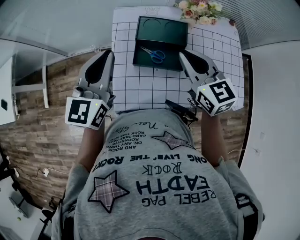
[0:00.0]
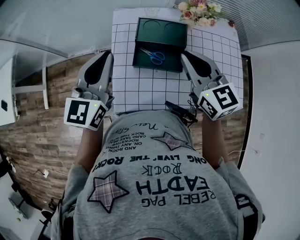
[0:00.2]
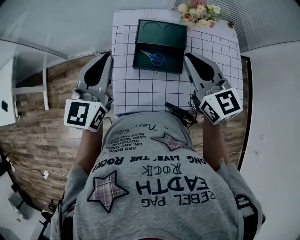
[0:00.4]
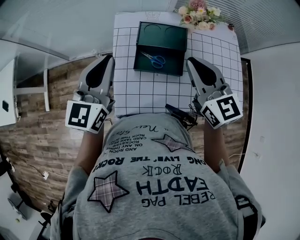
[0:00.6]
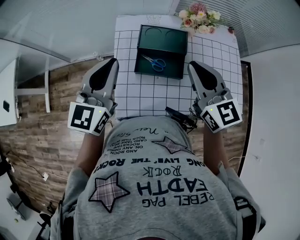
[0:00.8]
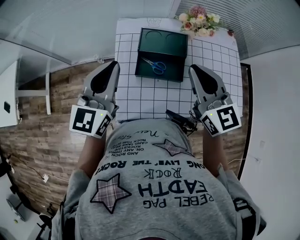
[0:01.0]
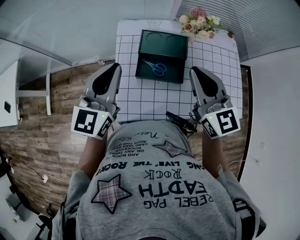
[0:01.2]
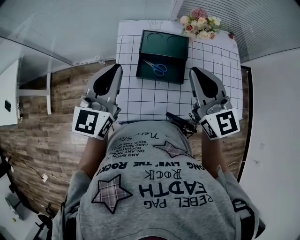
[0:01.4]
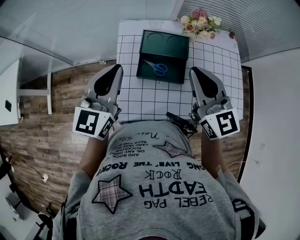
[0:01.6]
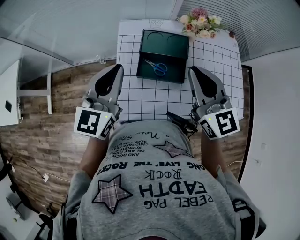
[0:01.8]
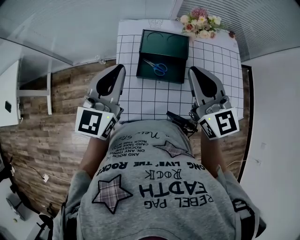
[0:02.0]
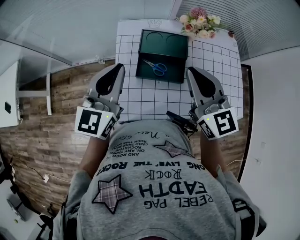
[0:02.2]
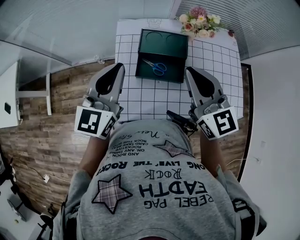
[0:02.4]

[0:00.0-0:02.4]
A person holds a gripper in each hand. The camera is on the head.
0:00.0 to 0:01.2: The right gripper shifts approximately 5 cm upward.
0:01.2 to 0:02.4: The grippers stay close to where they were, moving slightly.

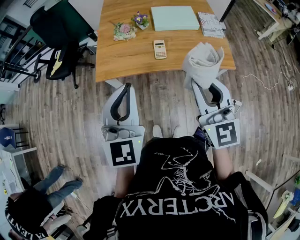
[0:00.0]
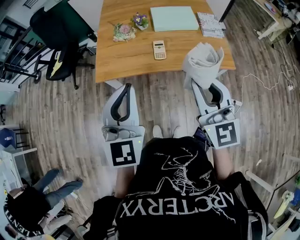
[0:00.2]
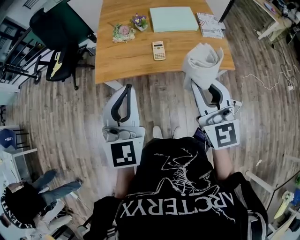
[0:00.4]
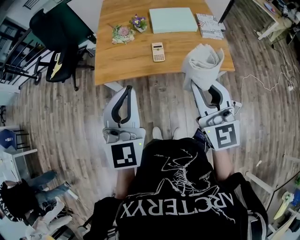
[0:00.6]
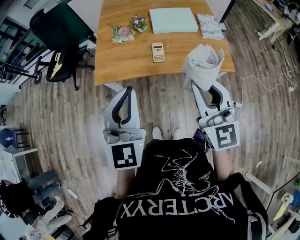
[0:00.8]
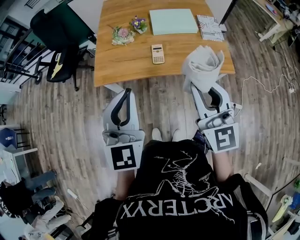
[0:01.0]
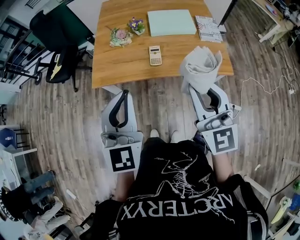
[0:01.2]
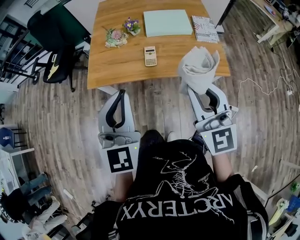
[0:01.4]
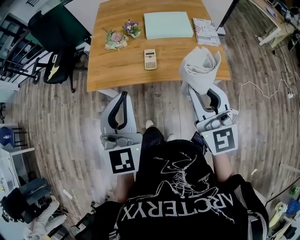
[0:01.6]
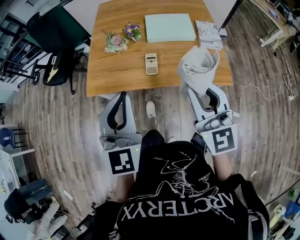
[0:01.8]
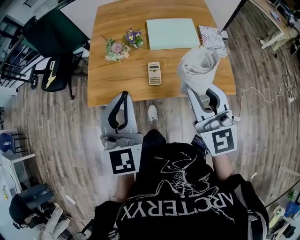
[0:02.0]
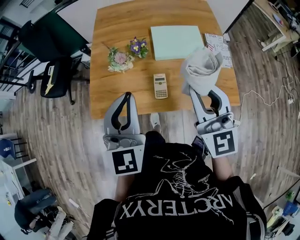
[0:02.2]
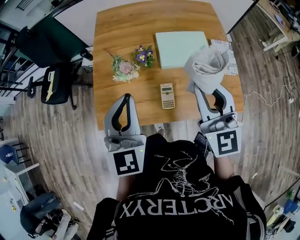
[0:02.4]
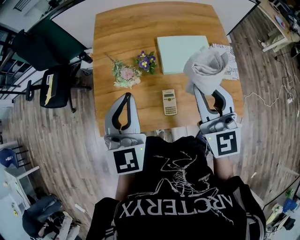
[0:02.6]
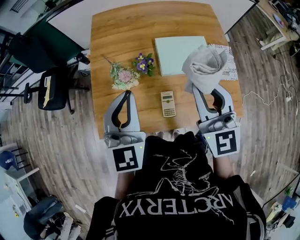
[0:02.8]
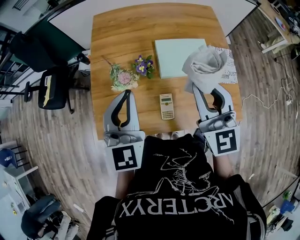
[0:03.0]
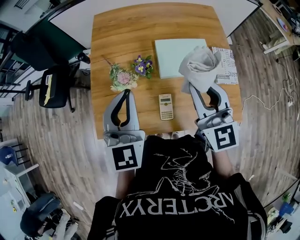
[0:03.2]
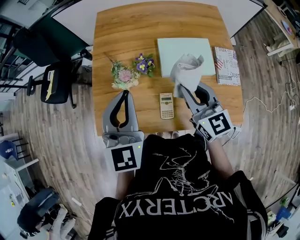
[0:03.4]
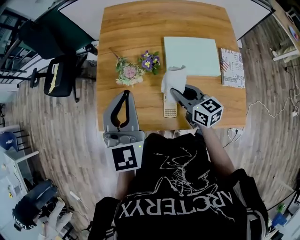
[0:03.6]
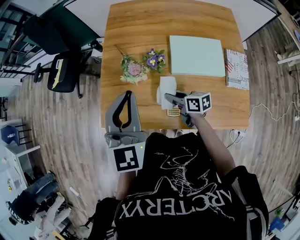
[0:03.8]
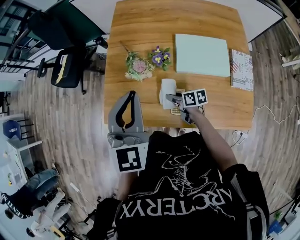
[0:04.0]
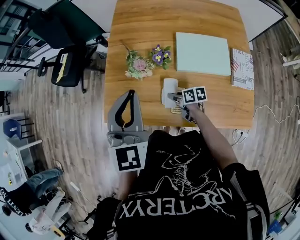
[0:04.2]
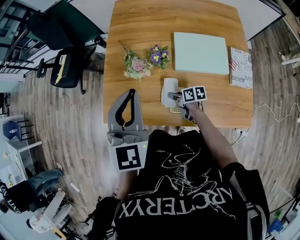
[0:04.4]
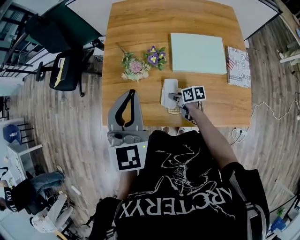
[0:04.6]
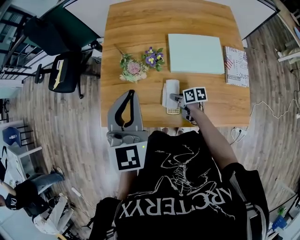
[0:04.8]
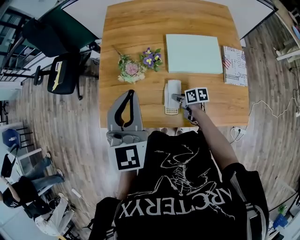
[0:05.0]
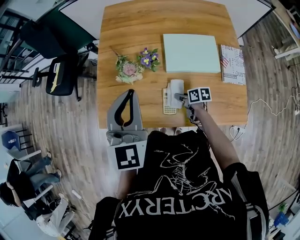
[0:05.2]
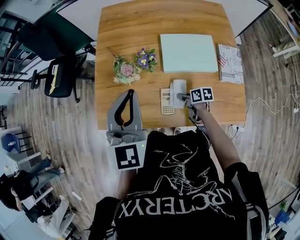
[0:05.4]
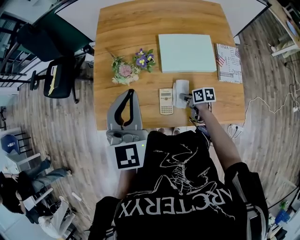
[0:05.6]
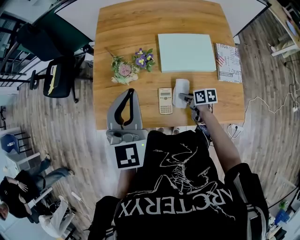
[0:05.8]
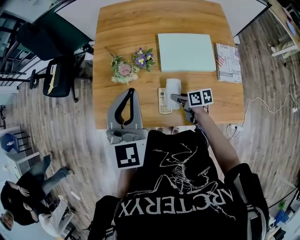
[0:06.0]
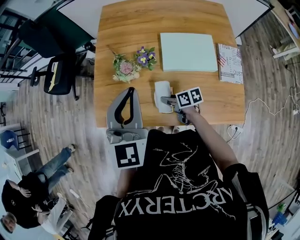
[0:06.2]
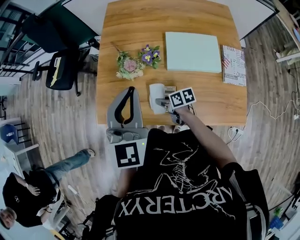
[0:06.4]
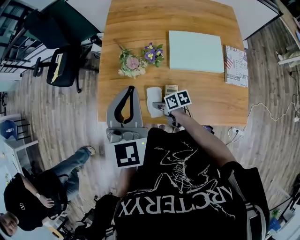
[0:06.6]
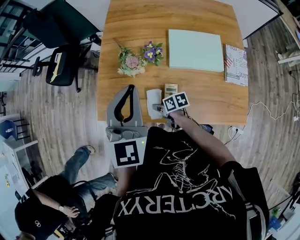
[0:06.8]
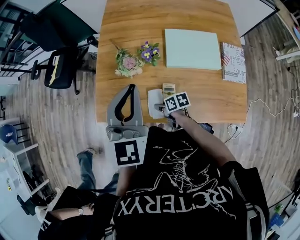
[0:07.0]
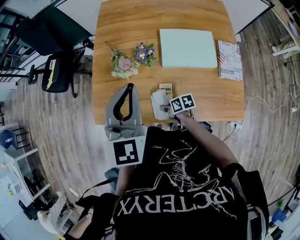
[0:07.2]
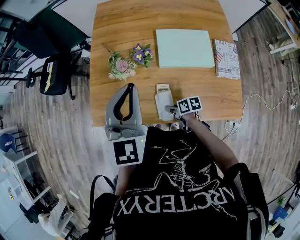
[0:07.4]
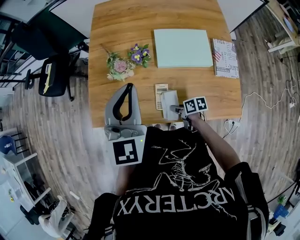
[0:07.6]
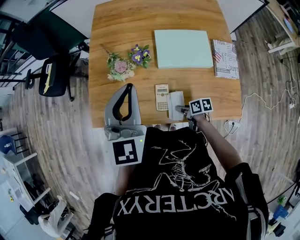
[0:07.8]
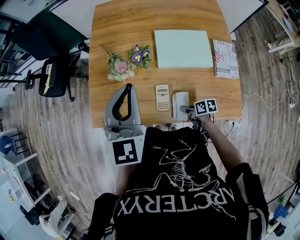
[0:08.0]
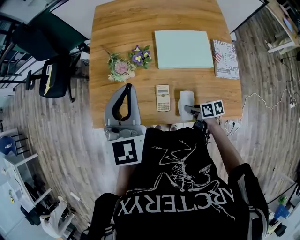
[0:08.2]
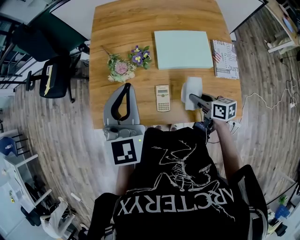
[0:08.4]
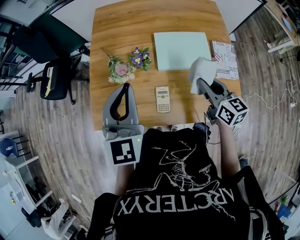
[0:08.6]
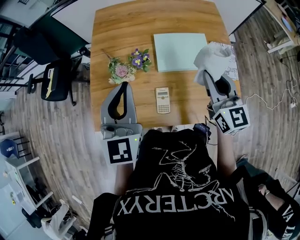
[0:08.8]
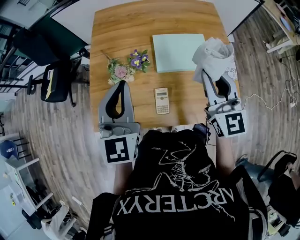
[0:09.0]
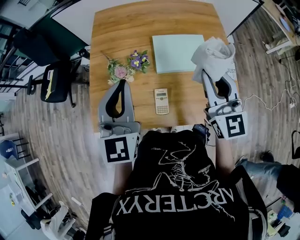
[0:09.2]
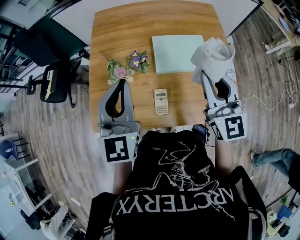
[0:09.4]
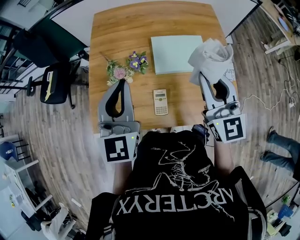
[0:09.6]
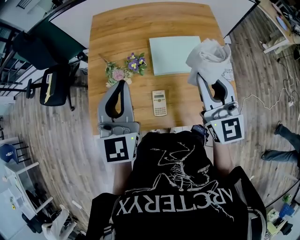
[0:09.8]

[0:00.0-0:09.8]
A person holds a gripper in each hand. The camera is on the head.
0:00.0 to 0:01.4: The grippers both shift to the right by approximately 5 cm.
0:01.4 to 0:02.8: The two grippers go about 35 cm forward.
0:02.8 to 0:04.2: The right gripper moves downward, roughly 40 cm, and angles its fingers downward, by about 30 degrees.
0:04.2 to 0:05.6: The right gripper goes about 15 cm to the right and backward.
0:05.6 to 0:07.0: The right gripper moves to the left, roughly 20 cm.
0:07.0 to 0:08.4: The right gripper goes roughly 25 cm to the right and upward, and changes its angle by roughly 30 degrees.
0:08.4 to 0:09.8: The right gripper moves upward, about 25 cm, and tilts its fingers roughly 30 degrees upward.

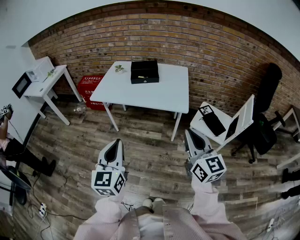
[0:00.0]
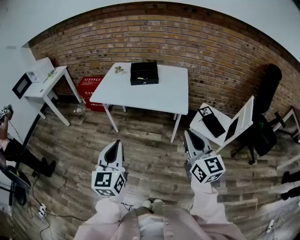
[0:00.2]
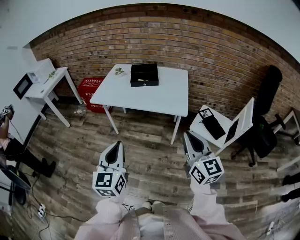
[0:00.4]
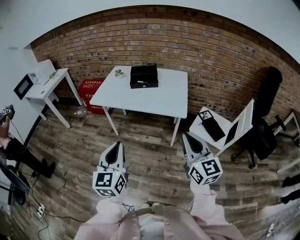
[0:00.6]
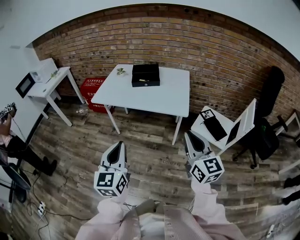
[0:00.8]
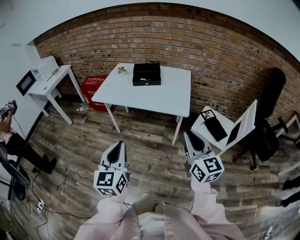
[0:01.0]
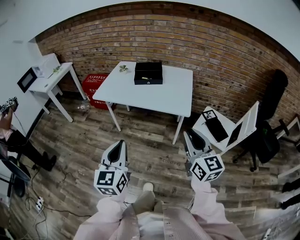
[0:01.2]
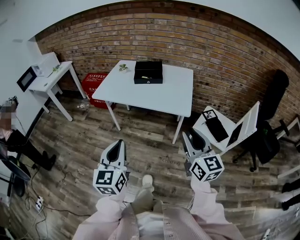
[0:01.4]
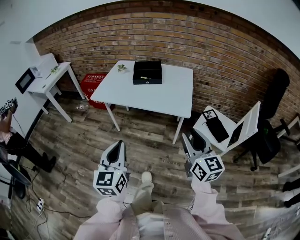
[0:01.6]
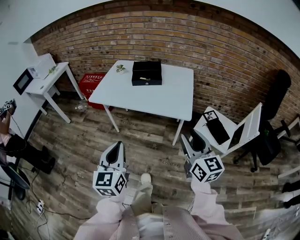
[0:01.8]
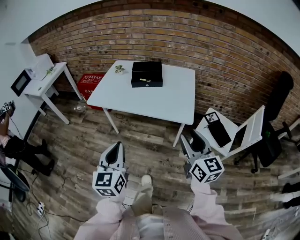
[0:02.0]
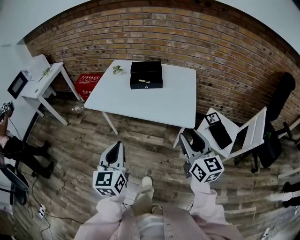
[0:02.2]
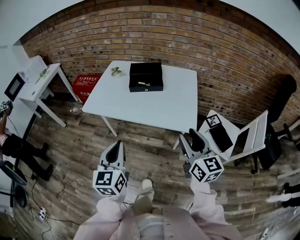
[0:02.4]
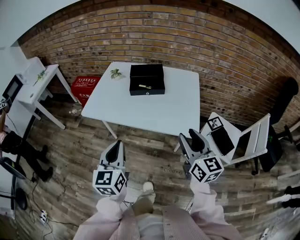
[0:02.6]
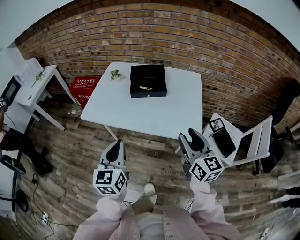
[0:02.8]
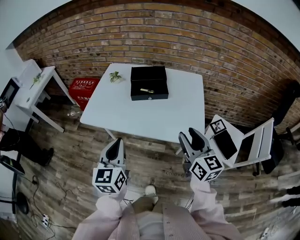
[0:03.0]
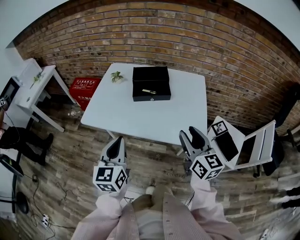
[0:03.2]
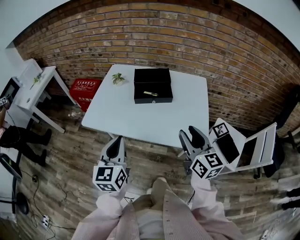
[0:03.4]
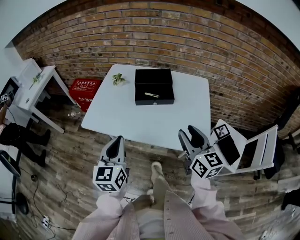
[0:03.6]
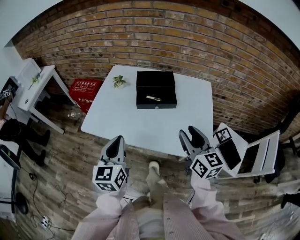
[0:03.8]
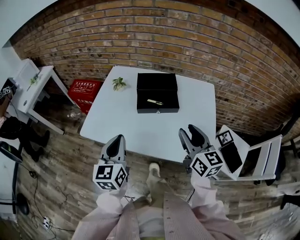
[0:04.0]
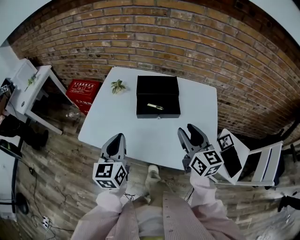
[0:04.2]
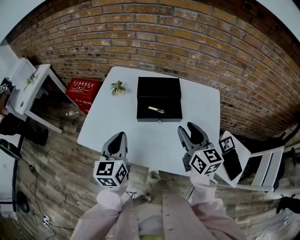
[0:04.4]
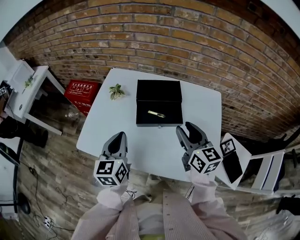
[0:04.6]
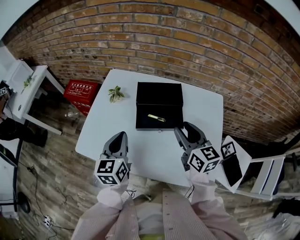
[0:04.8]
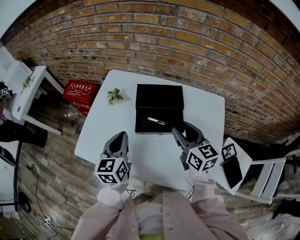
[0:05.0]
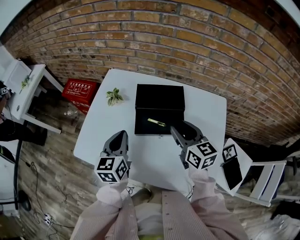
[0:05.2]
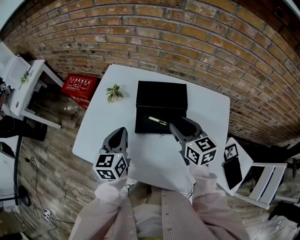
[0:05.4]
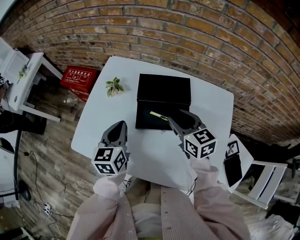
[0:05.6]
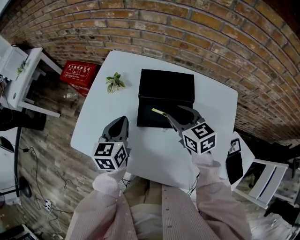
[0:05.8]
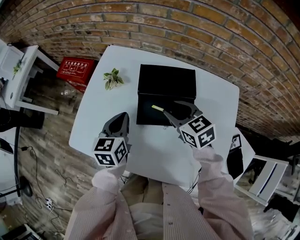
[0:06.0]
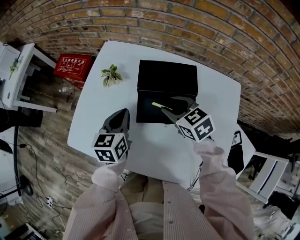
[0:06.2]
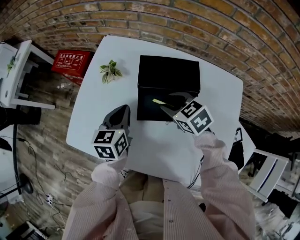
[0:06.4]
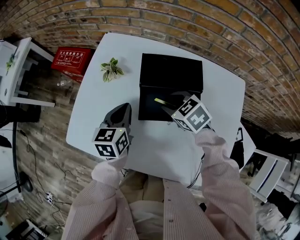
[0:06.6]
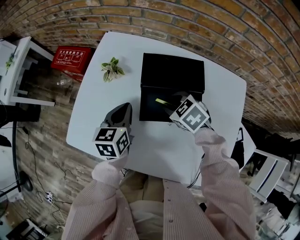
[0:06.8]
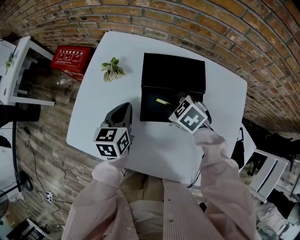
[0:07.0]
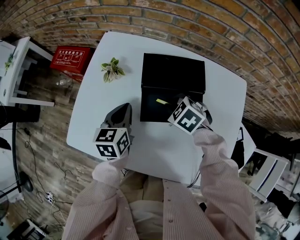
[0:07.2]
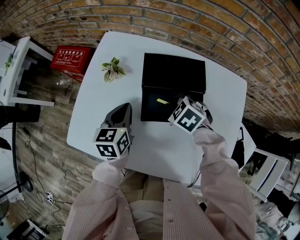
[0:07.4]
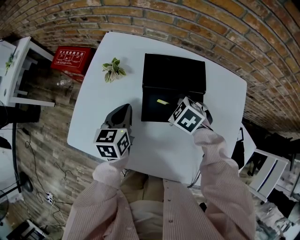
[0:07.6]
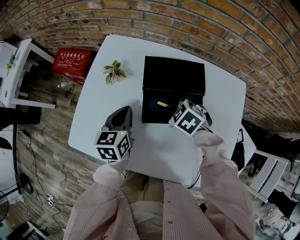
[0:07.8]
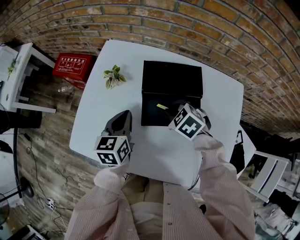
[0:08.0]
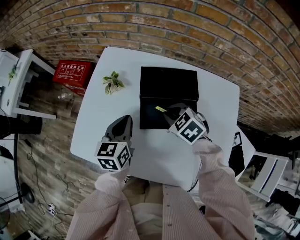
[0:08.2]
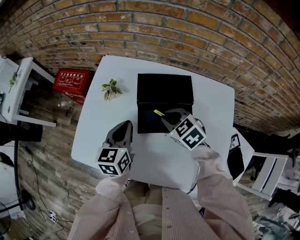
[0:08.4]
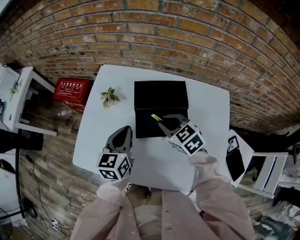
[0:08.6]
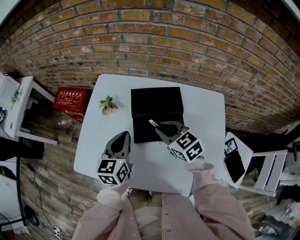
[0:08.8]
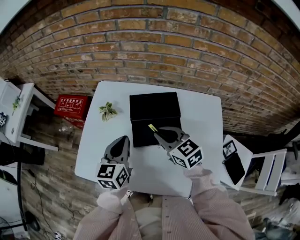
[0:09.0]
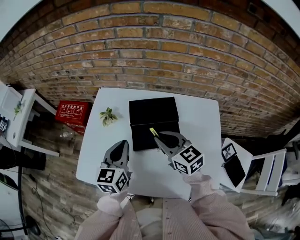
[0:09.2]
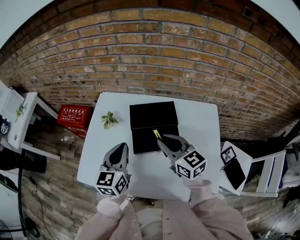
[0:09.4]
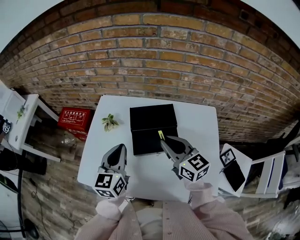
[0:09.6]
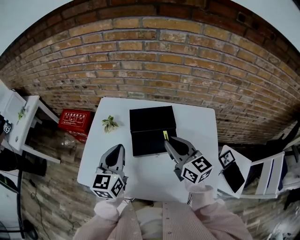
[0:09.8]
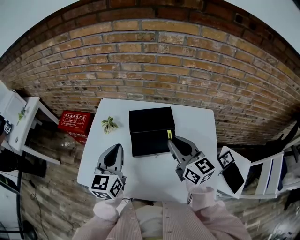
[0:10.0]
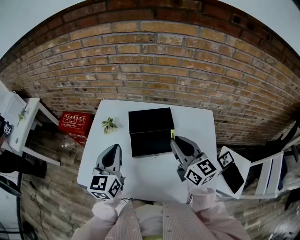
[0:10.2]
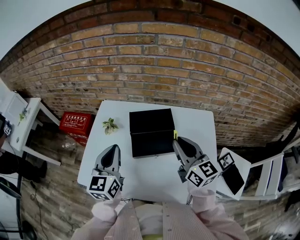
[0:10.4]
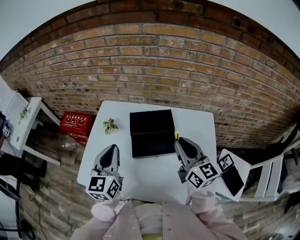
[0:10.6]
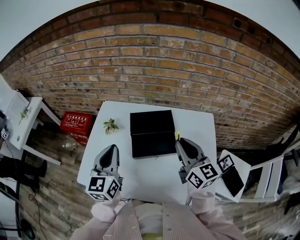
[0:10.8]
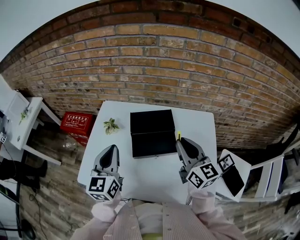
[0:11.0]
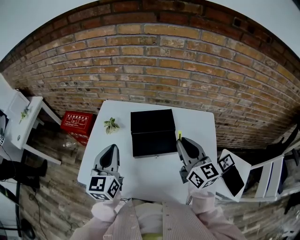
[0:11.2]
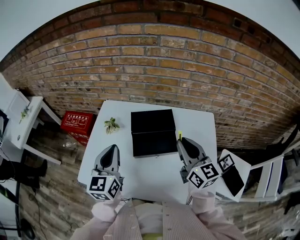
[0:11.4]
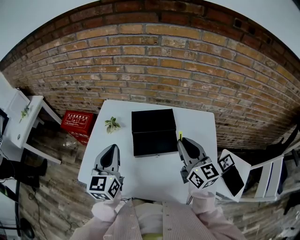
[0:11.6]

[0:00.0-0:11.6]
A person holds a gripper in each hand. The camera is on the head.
0:00.0 to 0:01.4: The right gripper changes place by about 5 cm, and opens up.
0:01.4 to 0:02.8: The grippers both shift forward by approximately 25 cm.
0:02.8 to 0:04.4: Both grippers travel together forward, approximately 25 cm.
0:04.4 to 0:05.8: The grippers both shift forward and downward by some 15 cm. The right gripper turns by some 30 degrees.
0:05.8 to 0:07.2: The right gripper shifts approximately 10 cm downward, tips its fingers downward by approximately 30 degrees, and closes, while the left gripper travels downward by about 5 cm.
0:07.2 to 0:08.8: Both grippers move upward, roughly 10 cm. The right gripper points its fingers roughly 30 degrees further upward.
0:08.8 to 0:10.2: The right gripper travels upward, to the right and backward by roughly 15 cm, and angles its fingers upward, by about 30 degrees. Meanwhile the left gripper moves upward, approximately 10 cm.
0:10.2 to 0:11.6: The grippers move only a little.
